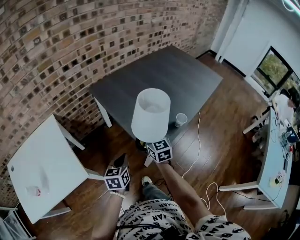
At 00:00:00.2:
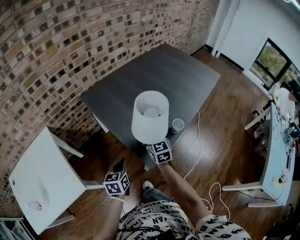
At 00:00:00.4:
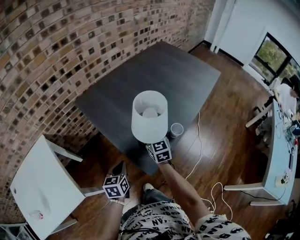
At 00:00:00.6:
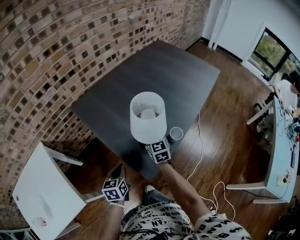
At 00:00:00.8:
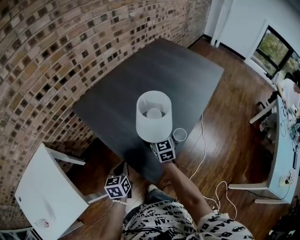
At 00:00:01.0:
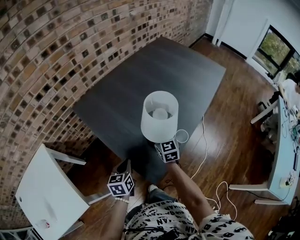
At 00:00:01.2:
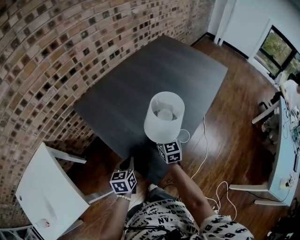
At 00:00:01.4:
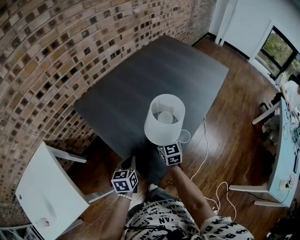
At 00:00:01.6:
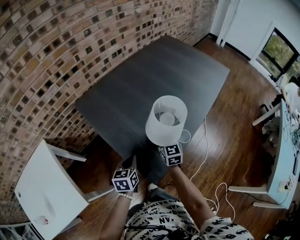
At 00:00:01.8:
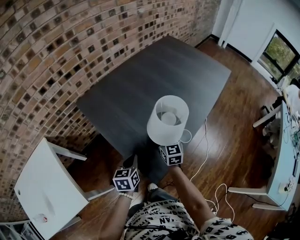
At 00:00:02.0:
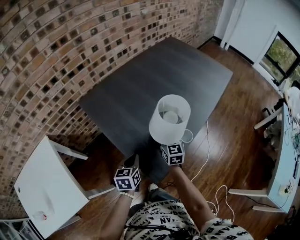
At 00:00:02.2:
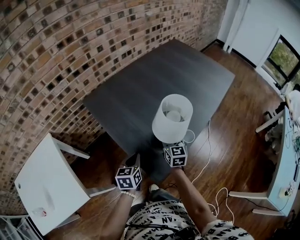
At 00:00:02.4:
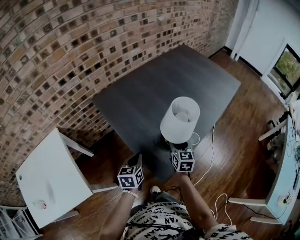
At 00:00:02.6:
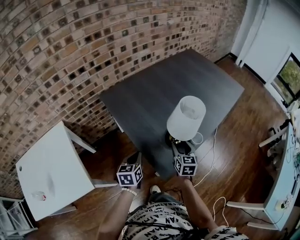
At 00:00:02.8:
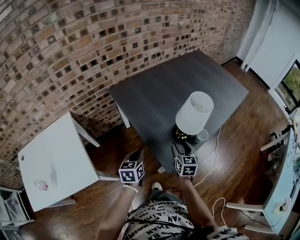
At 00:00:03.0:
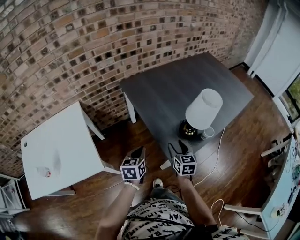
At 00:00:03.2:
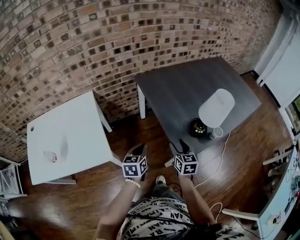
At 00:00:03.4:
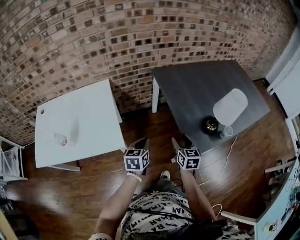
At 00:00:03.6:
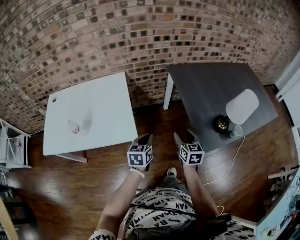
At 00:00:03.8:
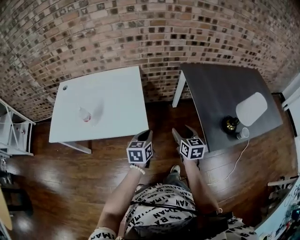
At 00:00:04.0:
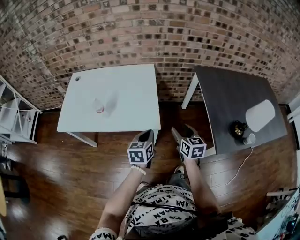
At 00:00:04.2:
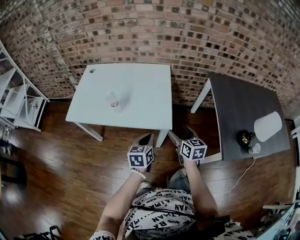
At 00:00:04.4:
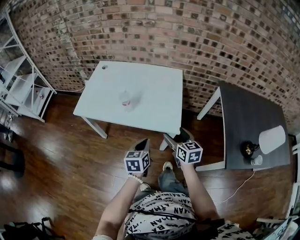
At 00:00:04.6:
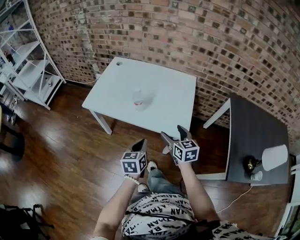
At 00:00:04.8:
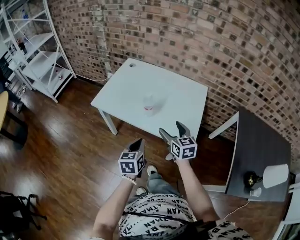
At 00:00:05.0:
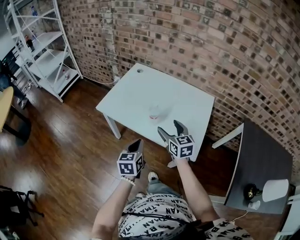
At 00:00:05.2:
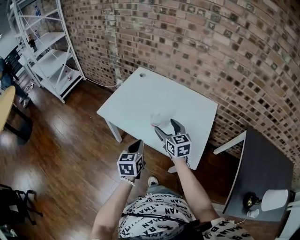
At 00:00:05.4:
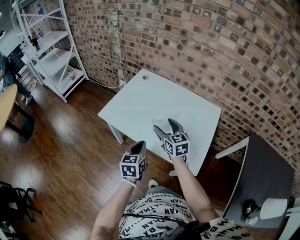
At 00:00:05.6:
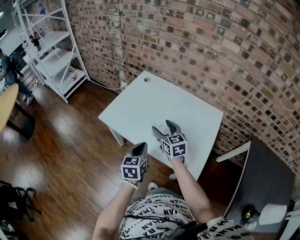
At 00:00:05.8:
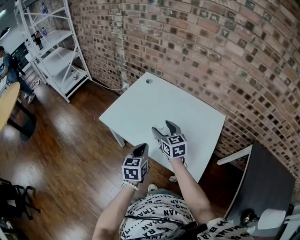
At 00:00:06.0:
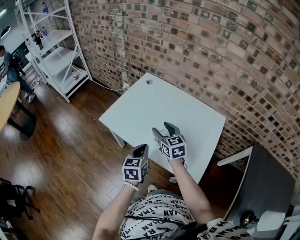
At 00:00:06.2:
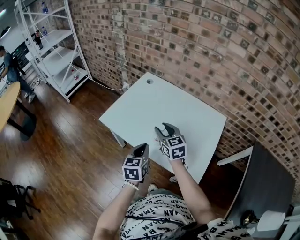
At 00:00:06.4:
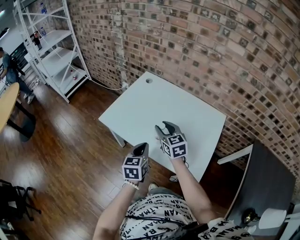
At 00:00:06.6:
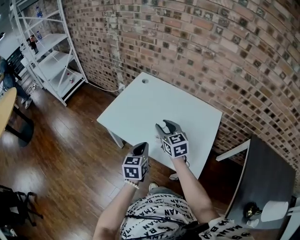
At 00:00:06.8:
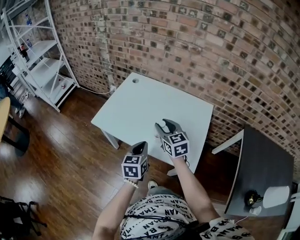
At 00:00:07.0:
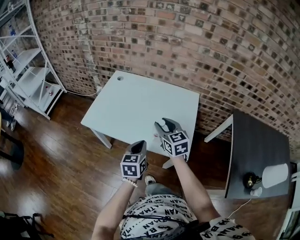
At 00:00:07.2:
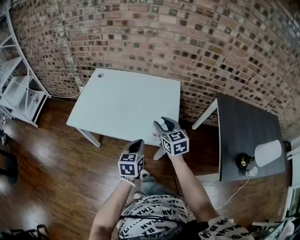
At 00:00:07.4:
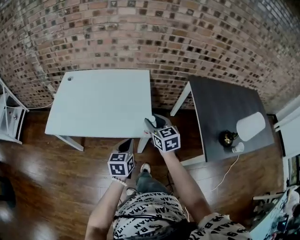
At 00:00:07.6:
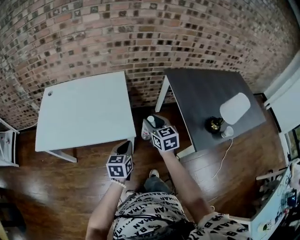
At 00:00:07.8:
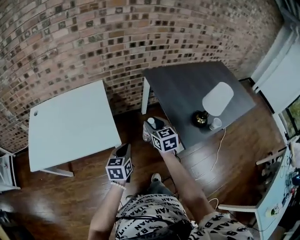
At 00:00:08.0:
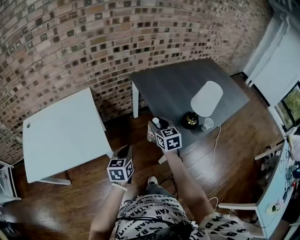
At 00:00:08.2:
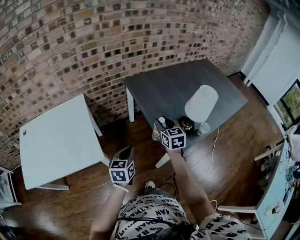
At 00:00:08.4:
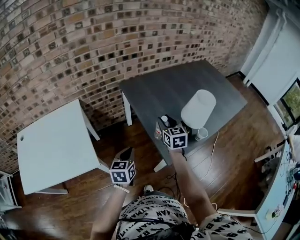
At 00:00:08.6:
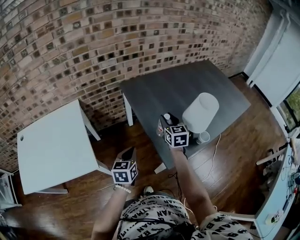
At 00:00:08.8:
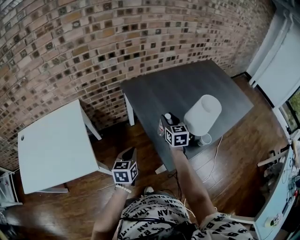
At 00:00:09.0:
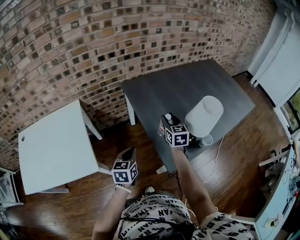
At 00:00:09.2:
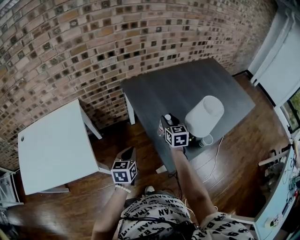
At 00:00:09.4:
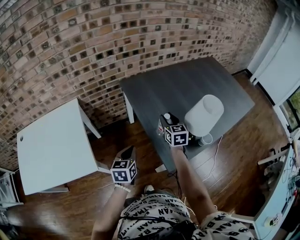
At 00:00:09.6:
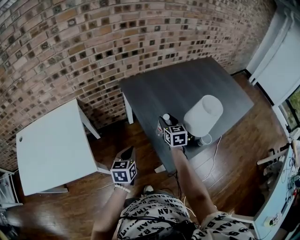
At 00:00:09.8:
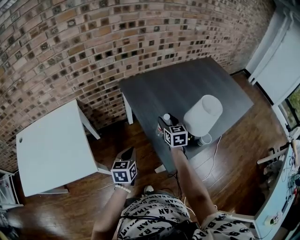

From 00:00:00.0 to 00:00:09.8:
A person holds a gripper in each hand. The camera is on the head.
From 00:00:00.0 to 00:00:01.4: The right gripper shifts roughly 20 cm forward, to the right and downward; the left gripper moves forward and to the right, about 20 cm.
From 00:00:01.4 to 00:00:02.8: The left gripper shifts some 10 cm backward and to the left. Meanwhile the right gripper is displaced backward by some 15 cm, and opens up.
From 00:00:02.8 to 00:00:04.2: Both grippers are carried roughly 50 cm. The right gripper rotates about 50 degrees. Meanwhile the left gripper changes its angle by about 40 degrees.
From 00:00:04.2 to 00:00:05.6: The left gripper ends up roughly 25 cm from where it was, and turns by some 30 degrees. The right gripper changes place by roughly 40 cm, and changes its angle by about 40 degrees.
From 00:00:05.6 to 00:00:07.0: The right gripper is displaced backward and to the right by about 10 cm, and closes; the left gripper heads to the right and backward, covering some 10 cm.
From 00:00:07.0 to 00:00:08.4: Both grippers are carried about 60 cm. The left gripper rotates some 40 degrees. Meanwhile the right gripper changes its angle by about 60 degrees.
From 00:00:08.4 to 00:00:09.8: Both grippers move forward, approximately 5 cm.

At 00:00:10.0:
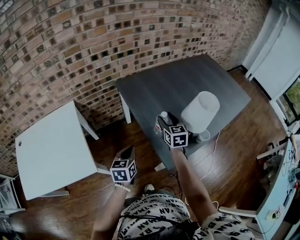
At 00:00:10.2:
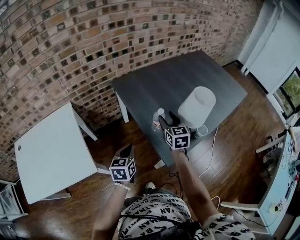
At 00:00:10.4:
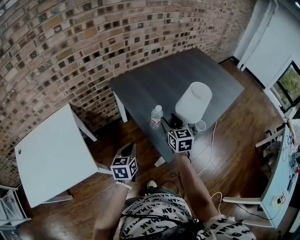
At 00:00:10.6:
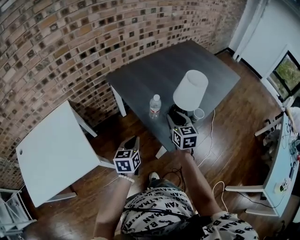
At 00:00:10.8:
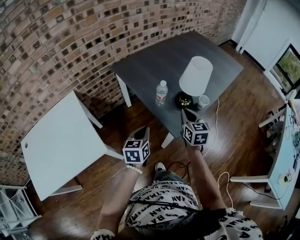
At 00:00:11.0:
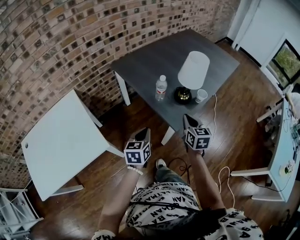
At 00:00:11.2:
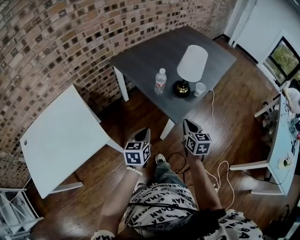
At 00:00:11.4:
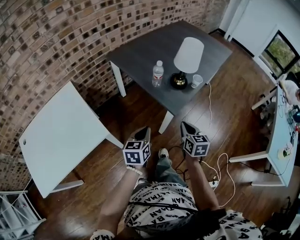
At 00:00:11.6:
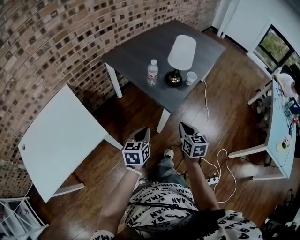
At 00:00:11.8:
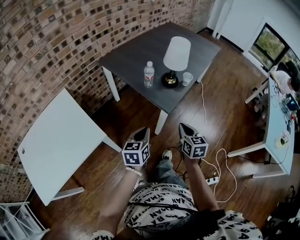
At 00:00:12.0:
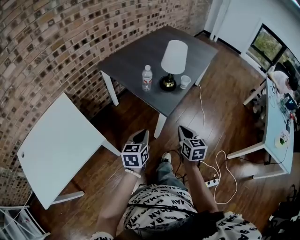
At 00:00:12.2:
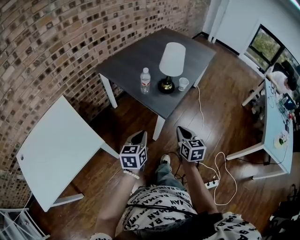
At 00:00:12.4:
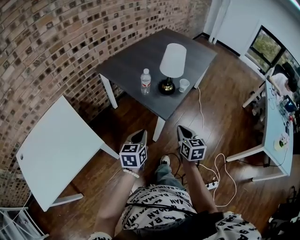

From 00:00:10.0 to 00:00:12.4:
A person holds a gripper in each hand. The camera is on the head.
From 00:00:10.0 to 00:00:11.2: The right gripper heads backward, covering about 30 cm, turns by about 20 degrees, and closes. The left gripper travels backward by roughly 15 cm.
From 00:00:11.2 to 00:00:12.4: The left gripper shifts by about 5 cm. Meanwhile the right gripper is displaced backward by approximately 10 cm.

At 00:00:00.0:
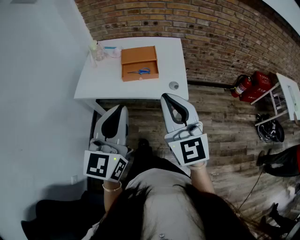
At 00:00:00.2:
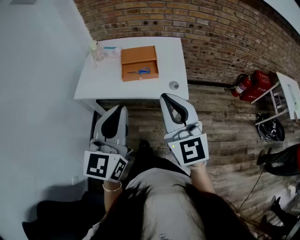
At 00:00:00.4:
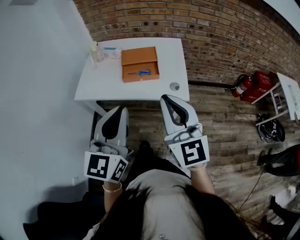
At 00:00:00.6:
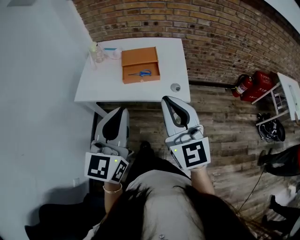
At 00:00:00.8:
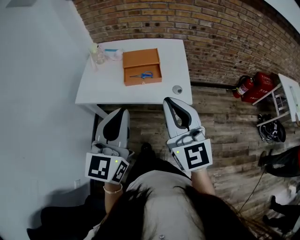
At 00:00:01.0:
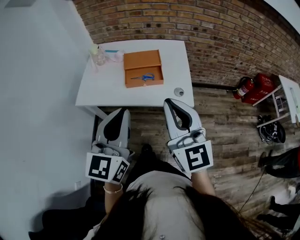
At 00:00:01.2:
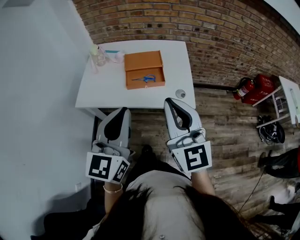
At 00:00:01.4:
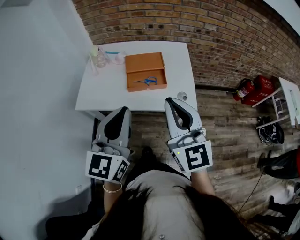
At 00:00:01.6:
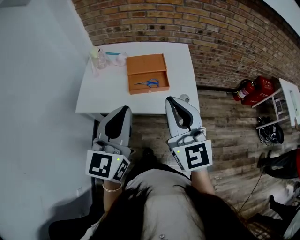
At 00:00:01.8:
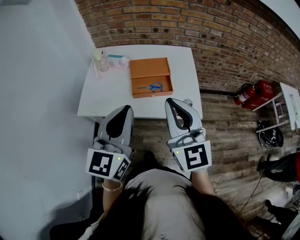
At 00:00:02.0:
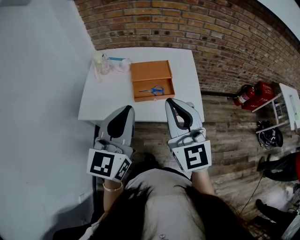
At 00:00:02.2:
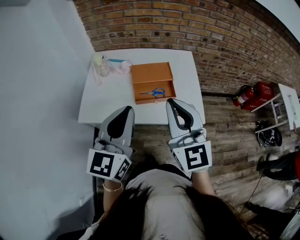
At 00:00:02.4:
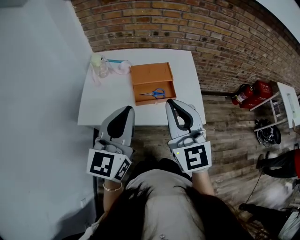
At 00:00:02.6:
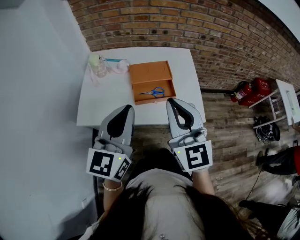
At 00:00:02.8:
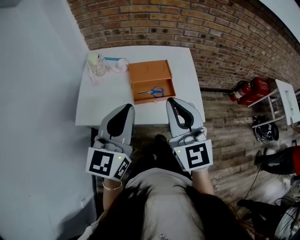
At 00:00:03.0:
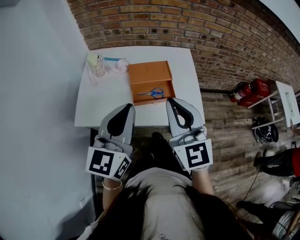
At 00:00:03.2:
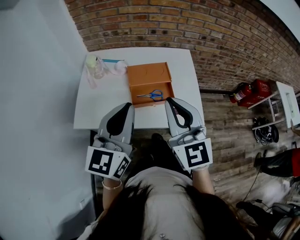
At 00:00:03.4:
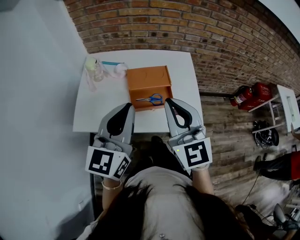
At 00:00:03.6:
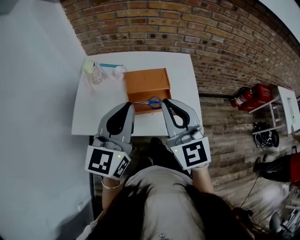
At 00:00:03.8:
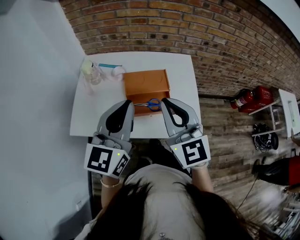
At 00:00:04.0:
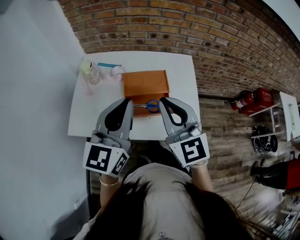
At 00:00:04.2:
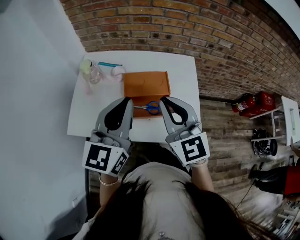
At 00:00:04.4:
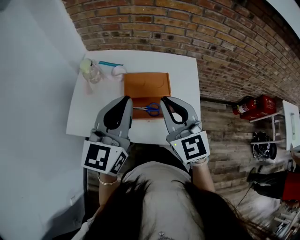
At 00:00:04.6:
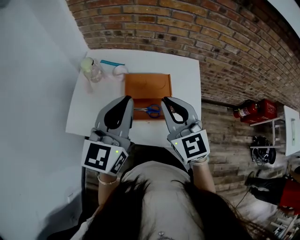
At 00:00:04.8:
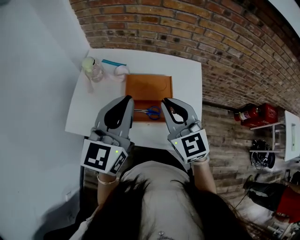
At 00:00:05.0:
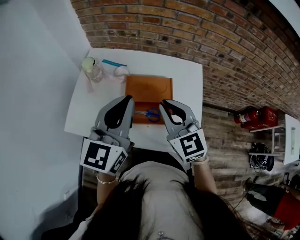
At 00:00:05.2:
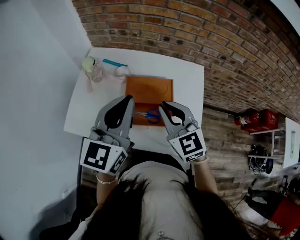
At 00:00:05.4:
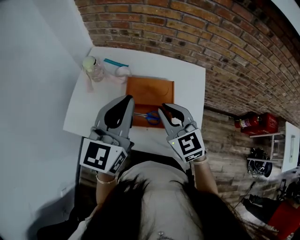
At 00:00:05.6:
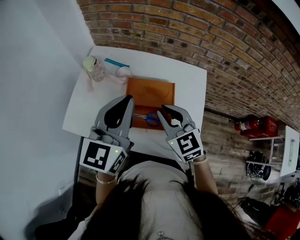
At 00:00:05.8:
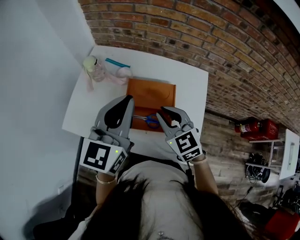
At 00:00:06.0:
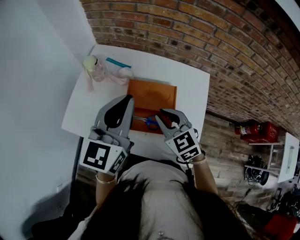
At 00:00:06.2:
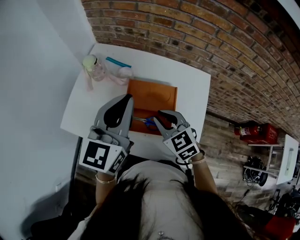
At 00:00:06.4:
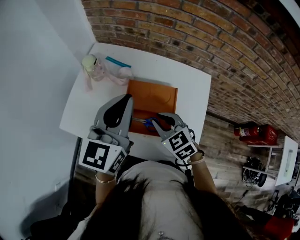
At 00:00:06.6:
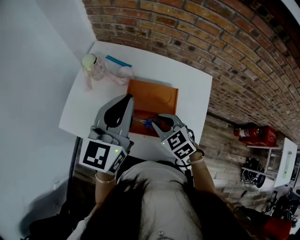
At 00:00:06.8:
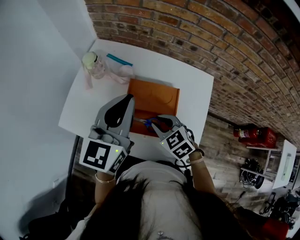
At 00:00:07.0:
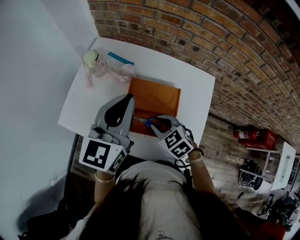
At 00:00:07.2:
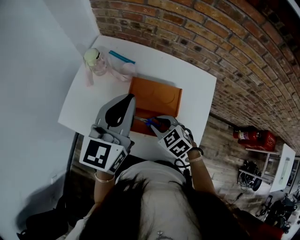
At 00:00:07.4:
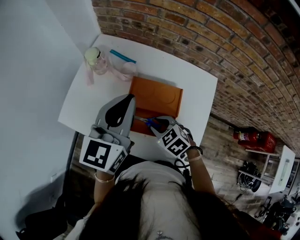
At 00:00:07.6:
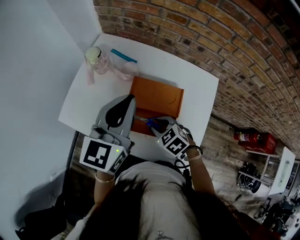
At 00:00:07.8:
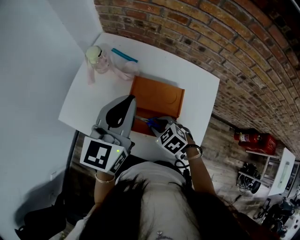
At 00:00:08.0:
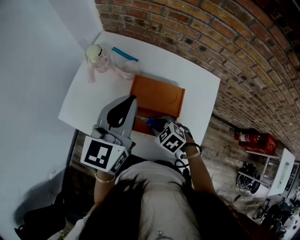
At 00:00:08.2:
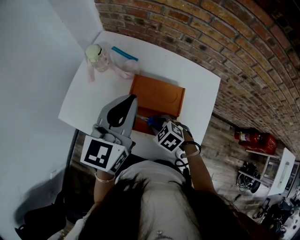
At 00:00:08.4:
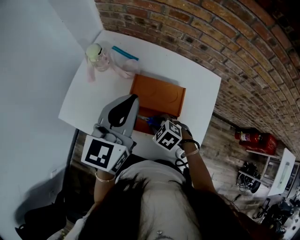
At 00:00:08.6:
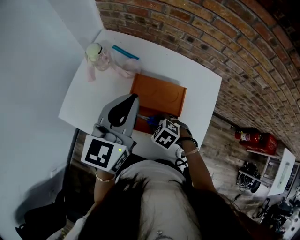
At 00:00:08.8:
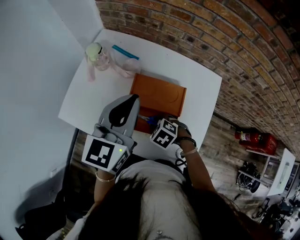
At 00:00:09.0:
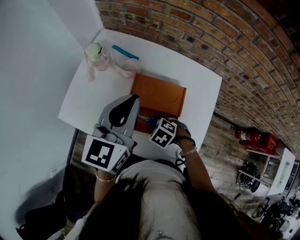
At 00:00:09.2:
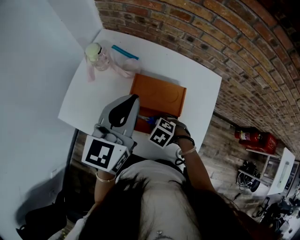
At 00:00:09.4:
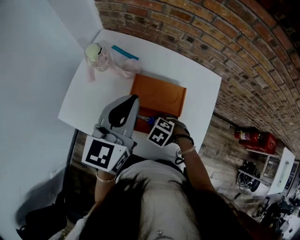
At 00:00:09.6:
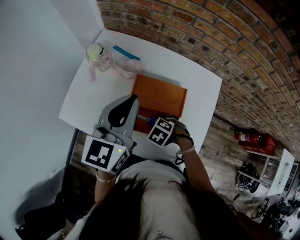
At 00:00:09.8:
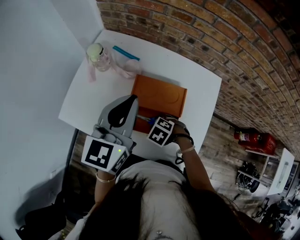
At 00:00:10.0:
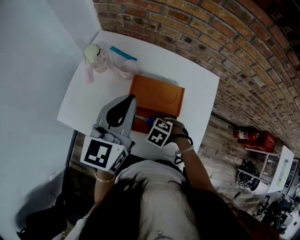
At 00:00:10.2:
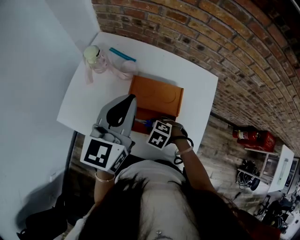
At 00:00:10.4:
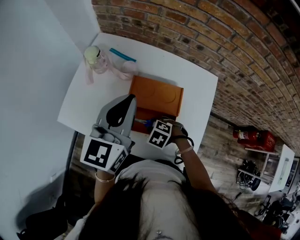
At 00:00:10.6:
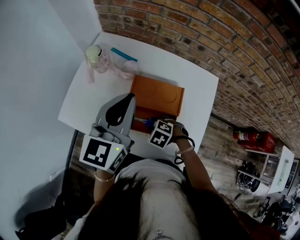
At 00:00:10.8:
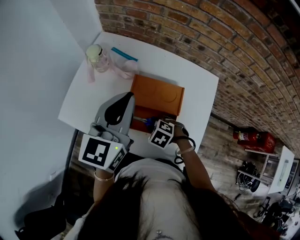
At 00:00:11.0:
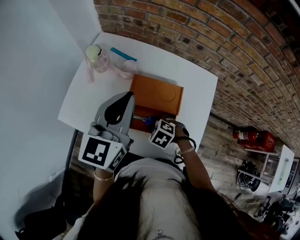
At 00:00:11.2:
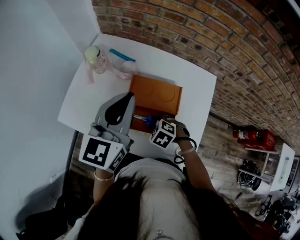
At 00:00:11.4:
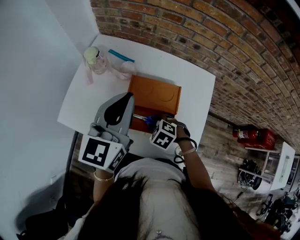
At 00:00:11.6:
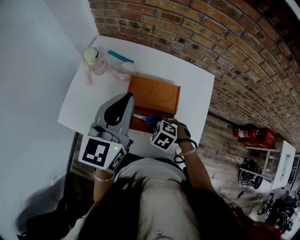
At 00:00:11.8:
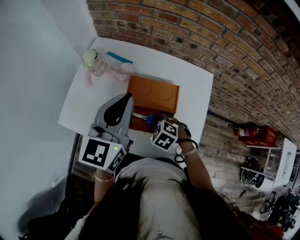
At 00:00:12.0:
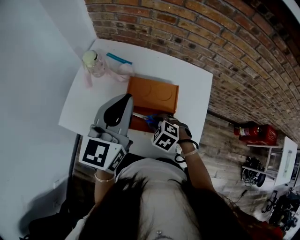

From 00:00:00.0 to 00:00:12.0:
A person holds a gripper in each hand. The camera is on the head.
From 00:00:00.0 to 00:00:01.6: Both grippers move forward and to the left, roughly 10 cm.
From 00:00:01.6 to 00:00:03.0: The left gripper heads forward, covering some 10 cm, while the right gripper moves forward and to the left, approximately 10 cm.
From 00:00:03.0 to 00:00:04.4: Both grippers move forward, about 15 cm.
From 00:00:04.4 to 00:00:06.0: The right gripper shifts some 15 cm downward and forward, and swivels about 30 degrees; the left gripper shifts about 10 cm forward.
From 00:00:06.0 to 00:00:07.6: The left gripper ends up some 5 cm from where it was. The right gripper moves downward, some 15 cm, and turns by approximately 30 degrees.
From 00:00:07.6 to 00:00:09.0: The right gripper shifts roughly 5 cm downward, and rotates roughly 20 degrees.
From 00:00:09.0 to 00:00:12.0: There are only small adjustments of the grippers.
